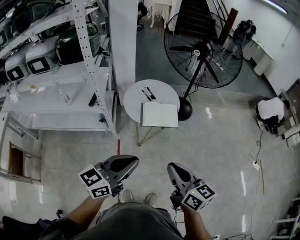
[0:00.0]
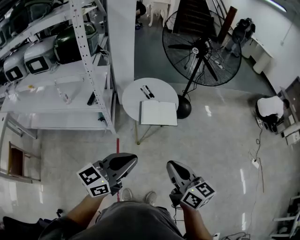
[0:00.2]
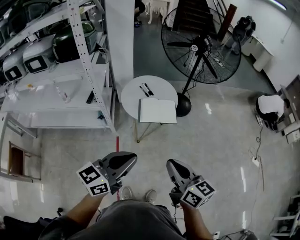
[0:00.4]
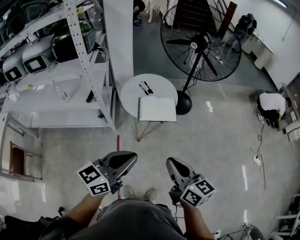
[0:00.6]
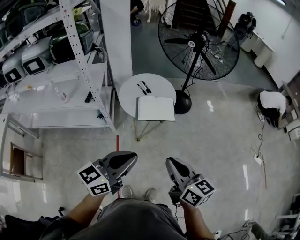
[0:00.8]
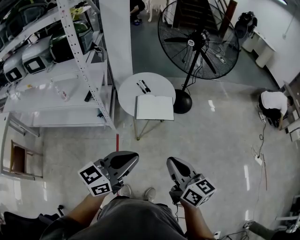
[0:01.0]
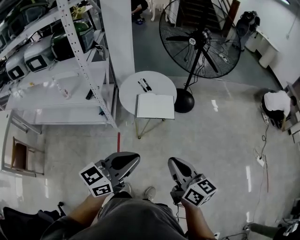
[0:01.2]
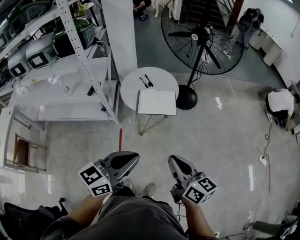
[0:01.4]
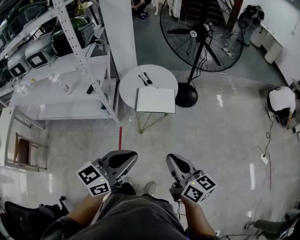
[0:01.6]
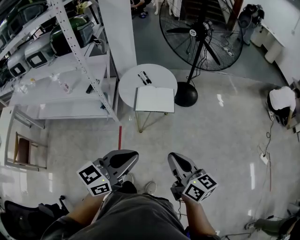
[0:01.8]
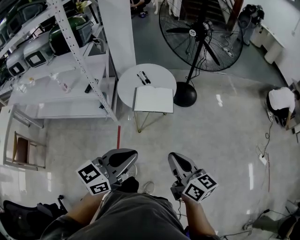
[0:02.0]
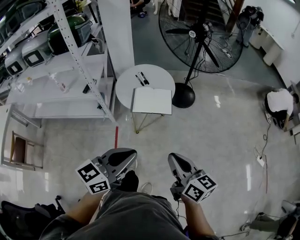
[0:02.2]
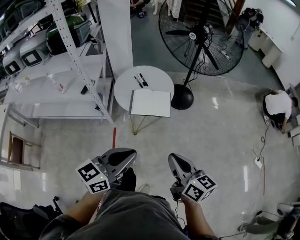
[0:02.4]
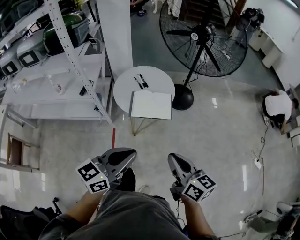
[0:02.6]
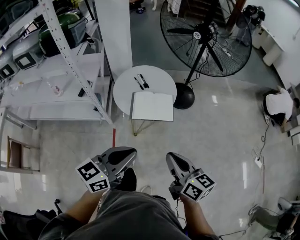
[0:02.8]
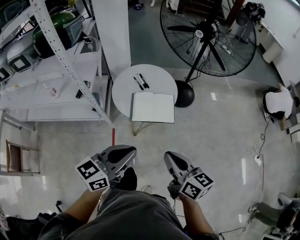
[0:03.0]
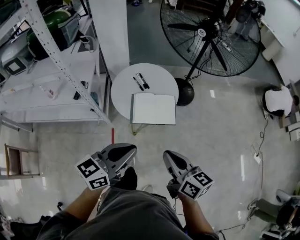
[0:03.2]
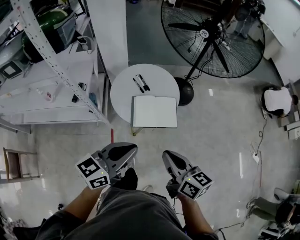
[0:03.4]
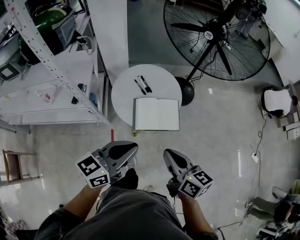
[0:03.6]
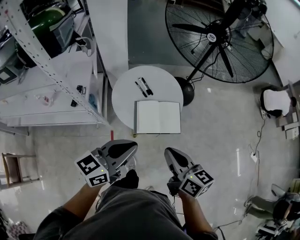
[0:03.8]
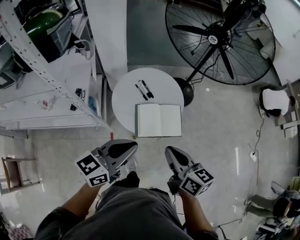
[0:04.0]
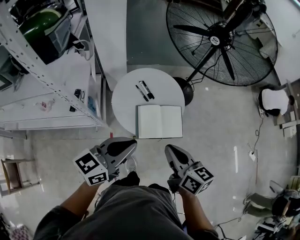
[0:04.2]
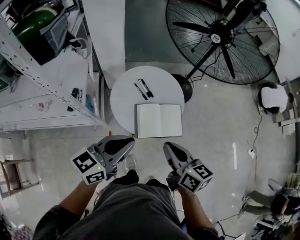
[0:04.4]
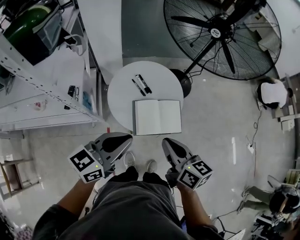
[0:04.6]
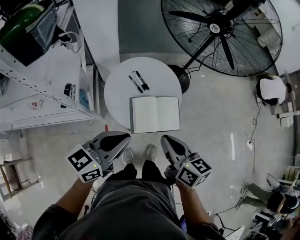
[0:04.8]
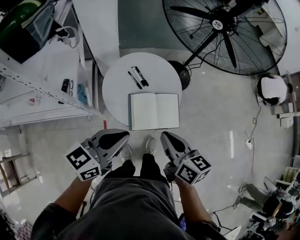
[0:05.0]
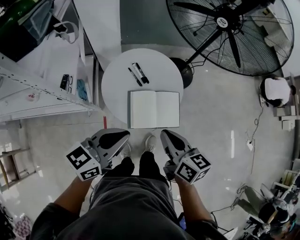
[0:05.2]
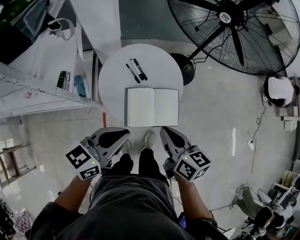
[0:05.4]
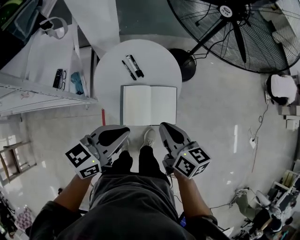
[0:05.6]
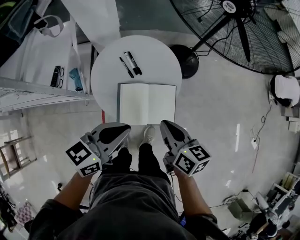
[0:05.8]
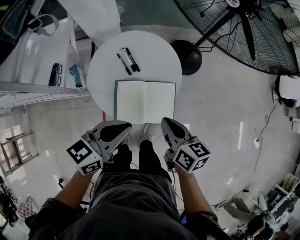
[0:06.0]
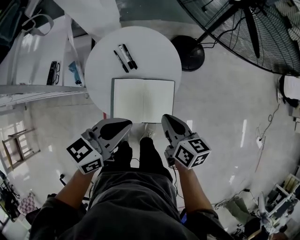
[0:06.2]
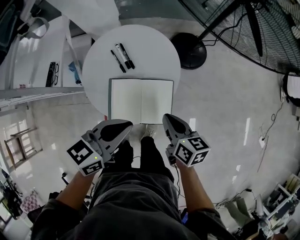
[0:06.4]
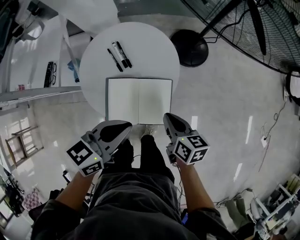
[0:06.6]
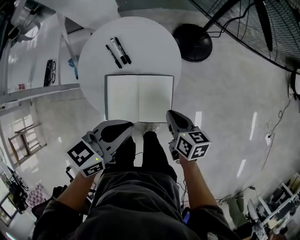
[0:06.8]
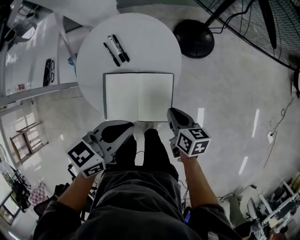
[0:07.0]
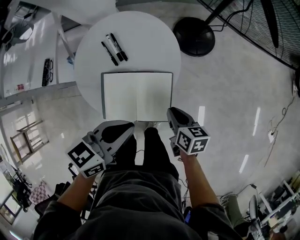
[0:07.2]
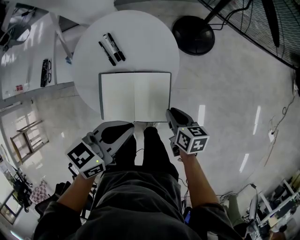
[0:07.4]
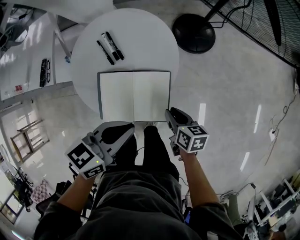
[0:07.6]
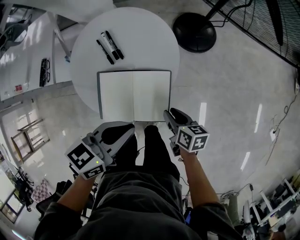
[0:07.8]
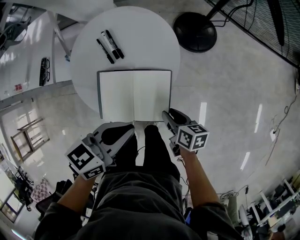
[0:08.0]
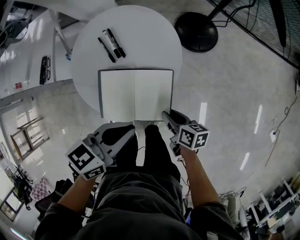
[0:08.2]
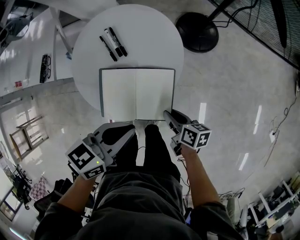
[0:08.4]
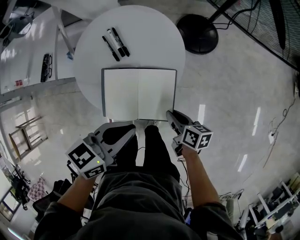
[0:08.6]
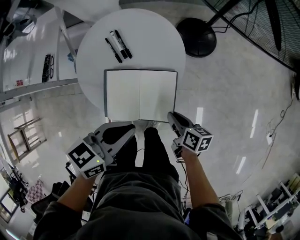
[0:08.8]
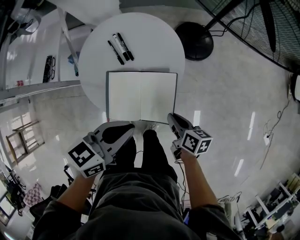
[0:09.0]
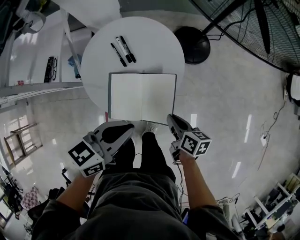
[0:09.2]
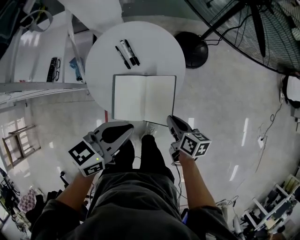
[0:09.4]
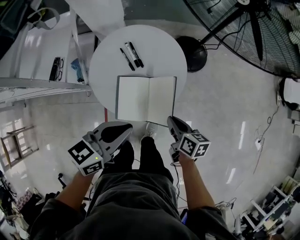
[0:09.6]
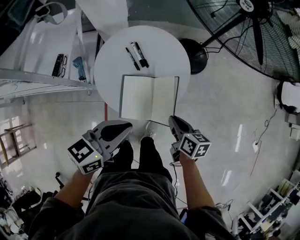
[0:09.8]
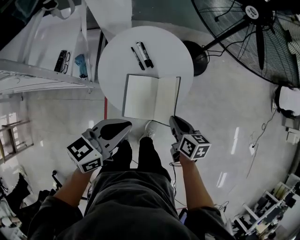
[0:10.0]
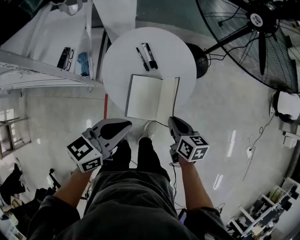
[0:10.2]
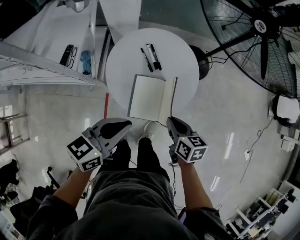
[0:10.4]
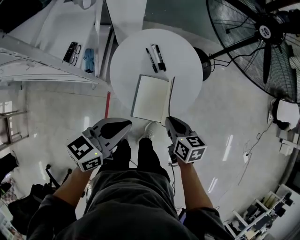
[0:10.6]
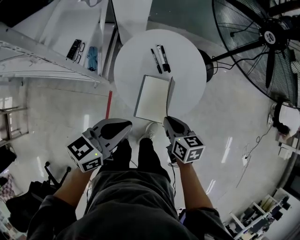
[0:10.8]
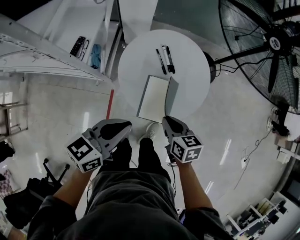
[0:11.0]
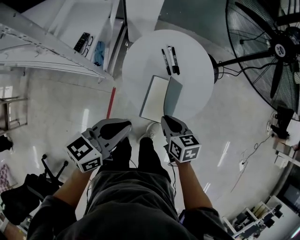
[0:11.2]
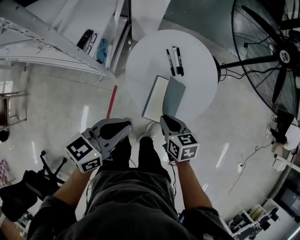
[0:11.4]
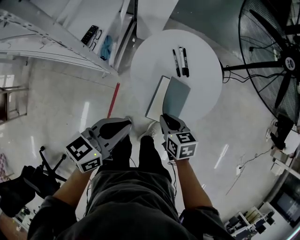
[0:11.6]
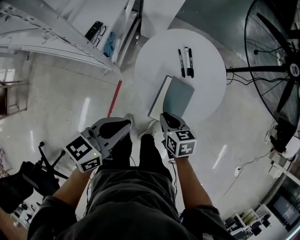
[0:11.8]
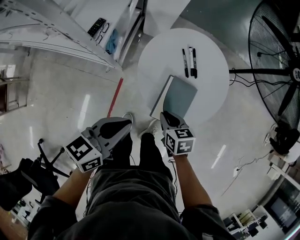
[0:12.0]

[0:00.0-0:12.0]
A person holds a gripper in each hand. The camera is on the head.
0.0 to 1.6 s: Both grippers move to the right, roughly 10 cm.
1.6 to 3.0 s: The grippers both shift forward by roughly 15 cm.
3.0 to 4.4 s: The grippers both shift forward and to the left by approximately 20 cm.
4.4 to 6.0 s: The right gripper travels downward, forward and to the right by approximately 20 cm. The left gripper shifts roughly 20 cm to the right, downward and forward.
6.0 to 7.6 s: The right gripper heads downward and to the right, covering some 20 cm. The left gripper moves downward and to the right, some 15 cm.
7.6 to 9.0 s: The grippers make only small movements.
9.0 to 10.4 s: The right gripper is displaced to the left and upward by some 15 cm, and changes its angle by roughly 20 degrees; the left gripper travels to the left by approximately 15 cm.
10.4 to 12.0 s: The left gripper heads to the left, covering about 10 cm. The right gripper goes approximately 15 cm to the left and downward, and turns by approximately 20 degrees.

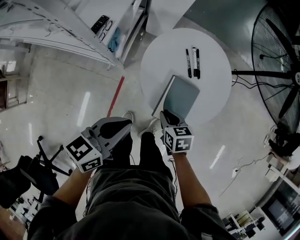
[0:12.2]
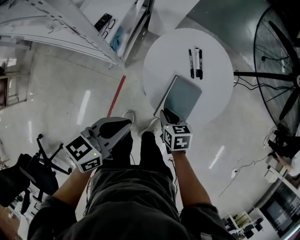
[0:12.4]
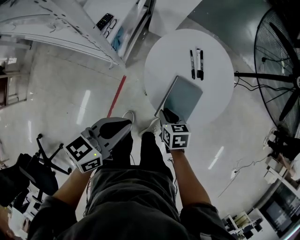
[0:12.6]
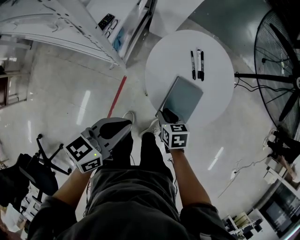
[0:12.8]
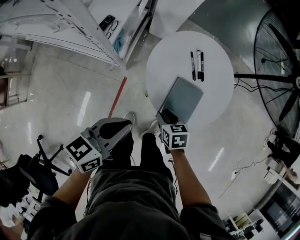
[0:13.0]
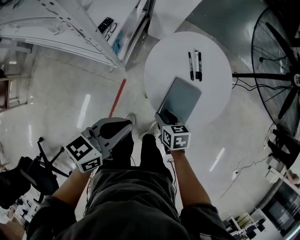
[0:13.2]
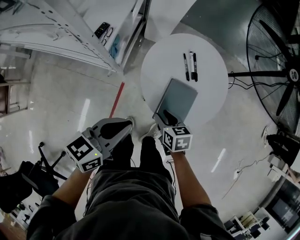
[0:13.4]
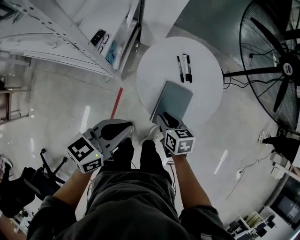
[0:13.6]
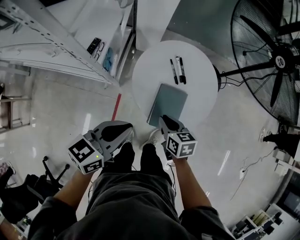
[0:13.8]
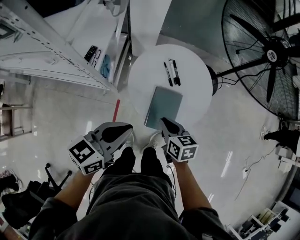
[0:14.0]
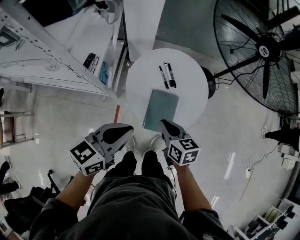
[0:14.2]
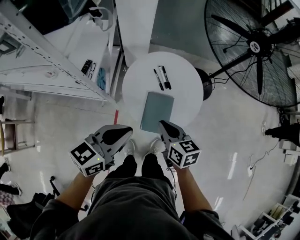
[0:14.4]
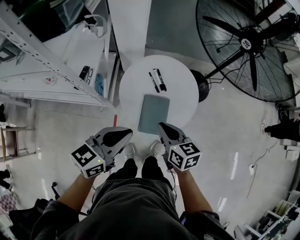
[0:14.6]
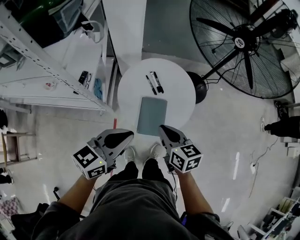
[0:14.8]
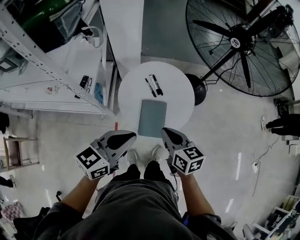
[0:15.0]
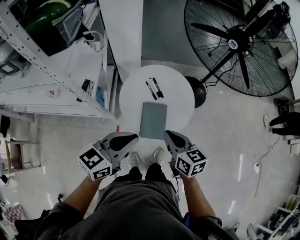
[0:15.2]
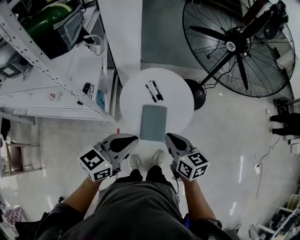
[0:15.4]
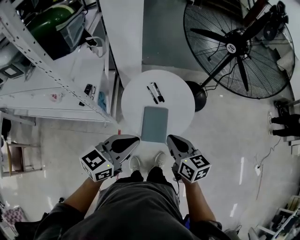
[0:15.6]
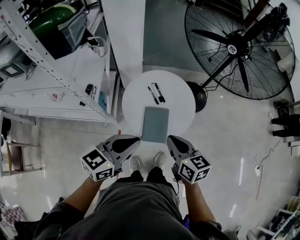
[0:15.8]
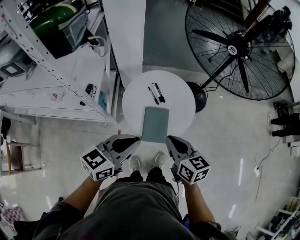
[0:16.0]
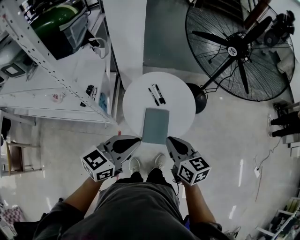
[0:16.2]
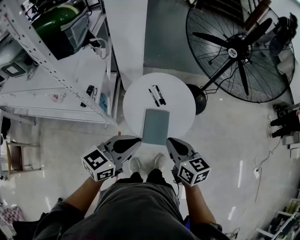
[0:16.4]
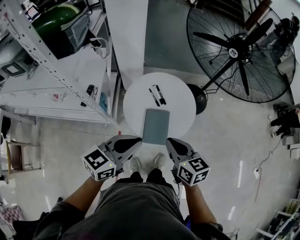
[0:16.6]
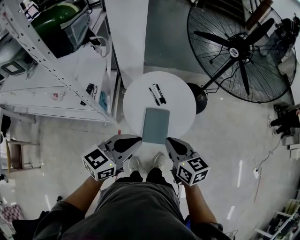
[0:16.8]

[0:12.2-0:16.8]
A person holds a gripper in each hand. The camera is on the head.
12.2 to 13.8 s: The grippers both shift upward by roughly 5 cm. The right gripper opens and closes again.
13.8 to 15.2 s: The grippers both shift upward and to the right by some 15 cm. The right gripper changes its angle by some 20 degrees.
15.2 to 16.8 s: The grippers make only small movements.

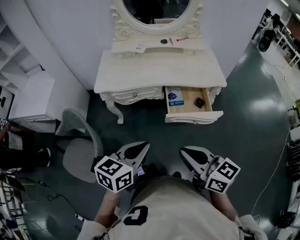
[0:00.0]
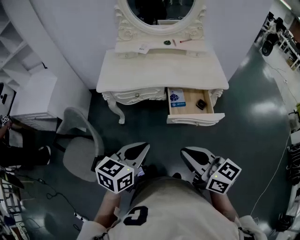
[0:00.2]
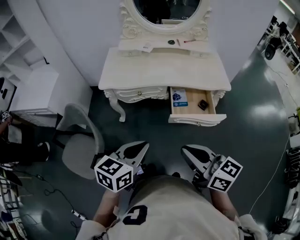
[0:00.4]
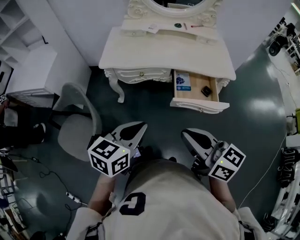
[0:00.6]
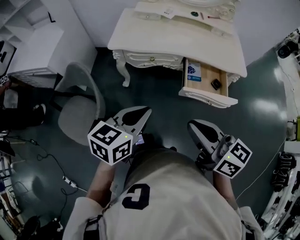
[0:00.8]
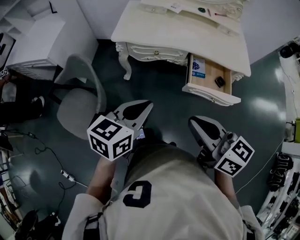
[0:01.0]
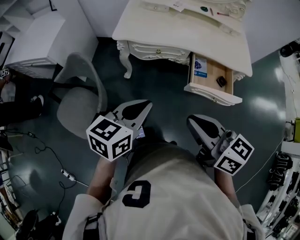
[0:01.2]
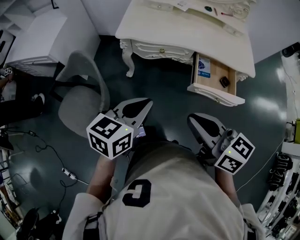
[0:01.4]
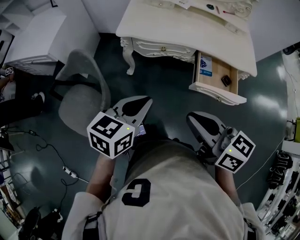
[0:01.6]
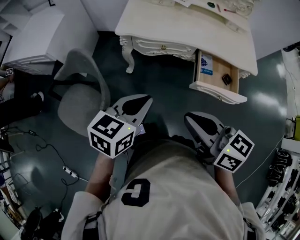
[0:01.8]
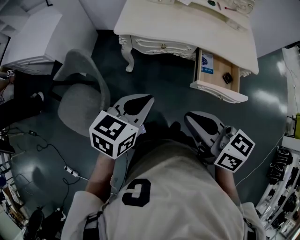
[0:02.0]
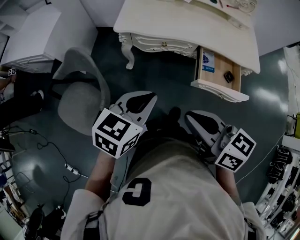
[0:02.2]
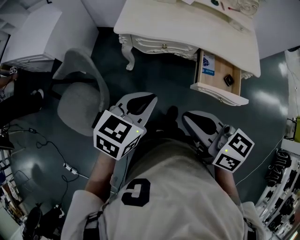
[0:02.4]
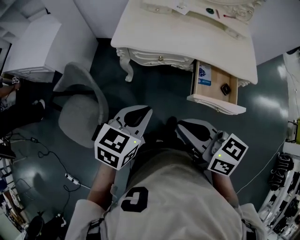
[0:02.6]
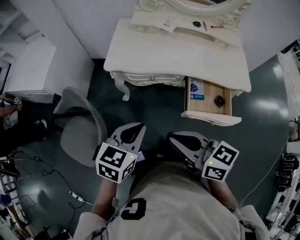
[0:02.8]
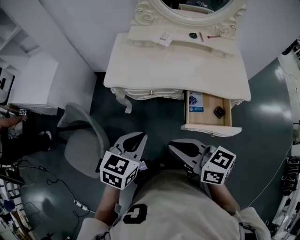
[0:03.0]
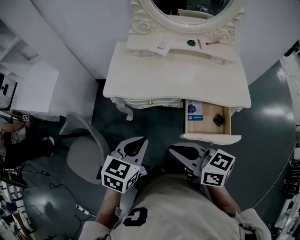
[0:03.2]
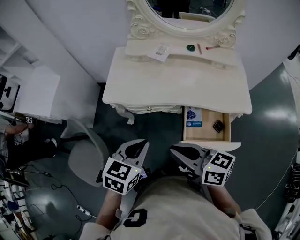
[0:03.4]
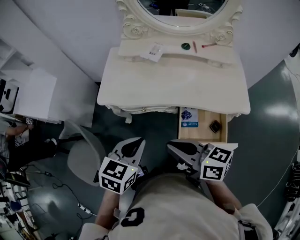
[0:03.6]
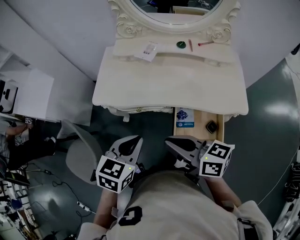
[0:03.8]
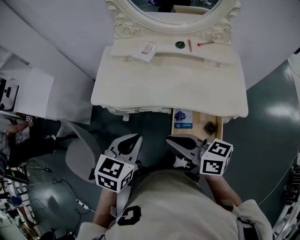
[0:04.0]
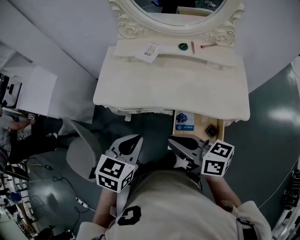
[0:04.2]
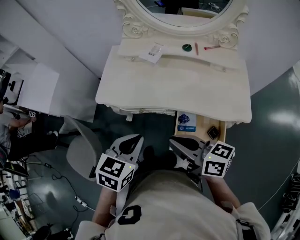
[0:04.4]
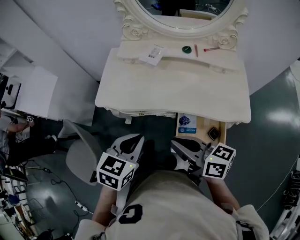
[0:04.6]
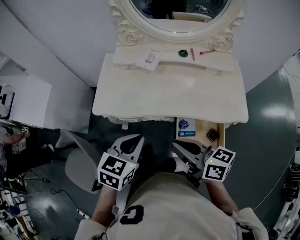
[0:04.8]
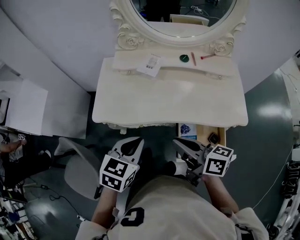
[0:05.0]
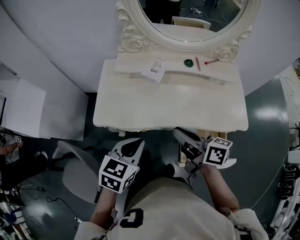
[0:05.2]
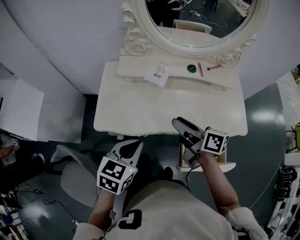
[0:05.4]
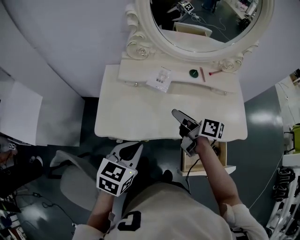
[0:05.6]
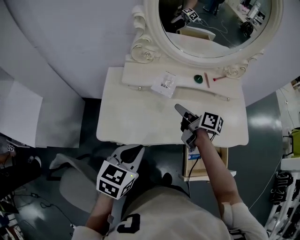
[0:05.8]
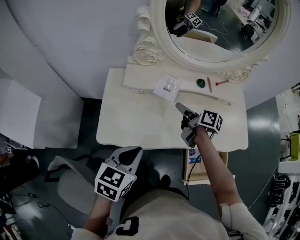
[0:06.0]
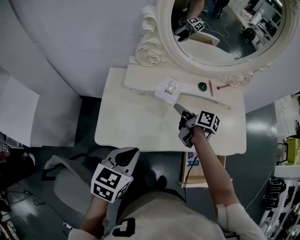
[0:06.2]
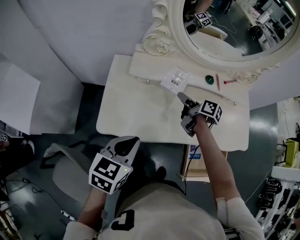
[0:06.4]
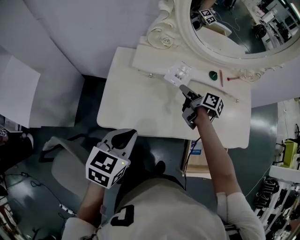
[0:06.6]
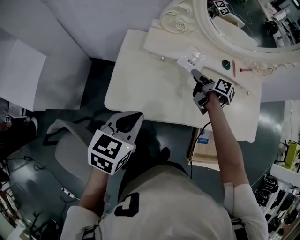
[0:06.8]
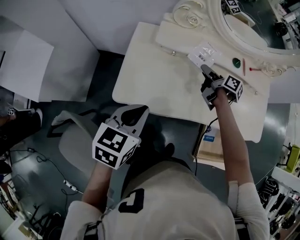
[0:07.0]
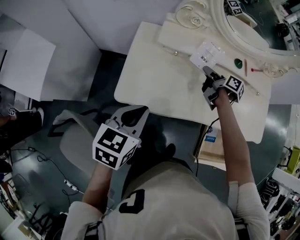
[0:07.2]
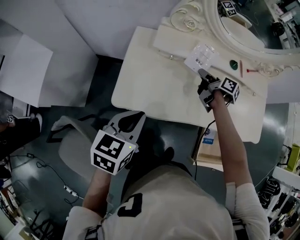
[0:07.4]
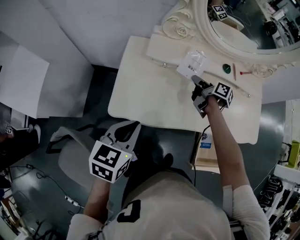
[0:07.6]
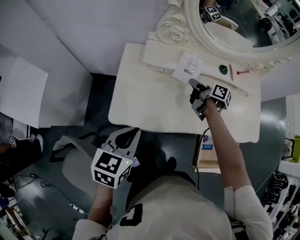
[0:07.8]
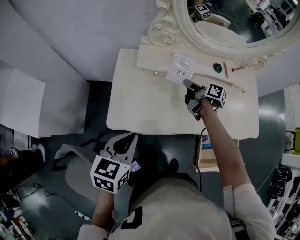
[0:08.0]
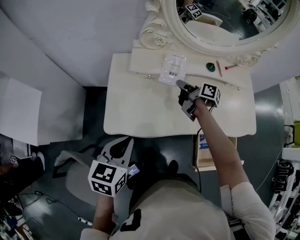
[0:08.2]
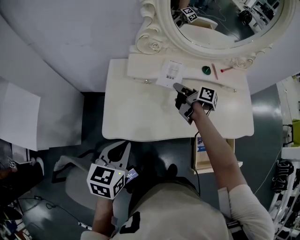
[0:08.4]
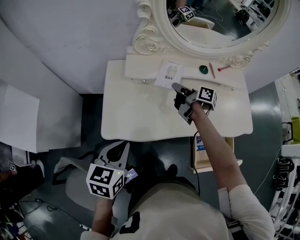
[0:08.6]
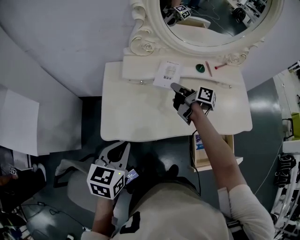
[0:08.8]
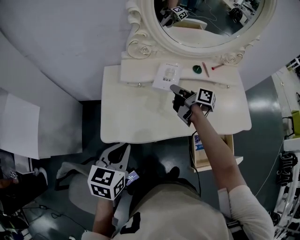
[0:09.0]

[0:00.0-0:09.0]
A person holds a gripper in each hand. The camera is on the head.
0.0 to 1.6 s: Both grippers travel together to the left, approximately 15 cm.
1.6 to 3.0 s: The right gripper travels forward by about 10 cm. Meanwhile the left gripper heads forward and to the right, covering roughly 10 cm.
3.0 to 4.4 s: Both grippers travel together to the right and forward, some 15 cm.
4.4 to 6.0 s: The left gripper goes roughly 20 cm forward and to the left. Meanwhile the right gripper travels forward by roughly 35 cm, changes its angle by about 40 degrees, and opens its fingers.
6.0 to 7.6 s: The left gripper heads to the left, covering approximately 10 cm. Meanwhile the right gripper goes about 10 cm downward and forward, and closes up.
7.6 to 9.0 s: The right gripper is displaced upward by approximately 5 cm.
